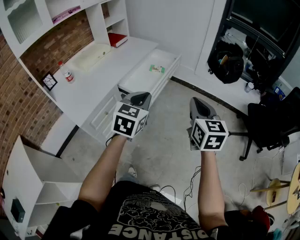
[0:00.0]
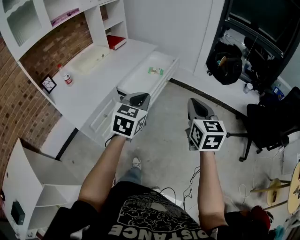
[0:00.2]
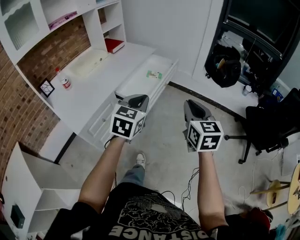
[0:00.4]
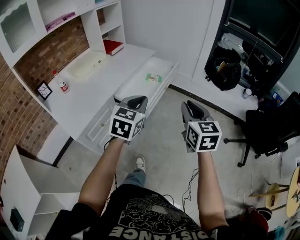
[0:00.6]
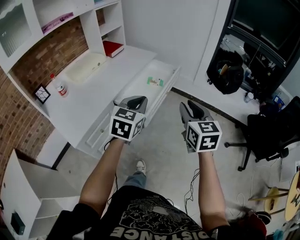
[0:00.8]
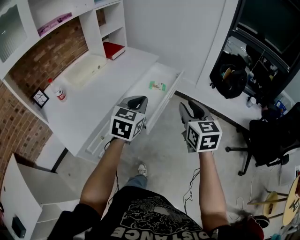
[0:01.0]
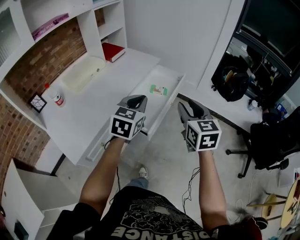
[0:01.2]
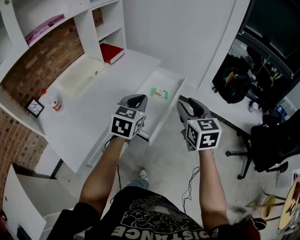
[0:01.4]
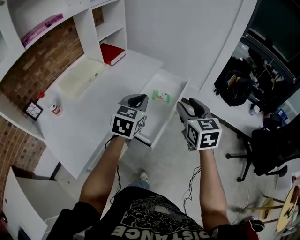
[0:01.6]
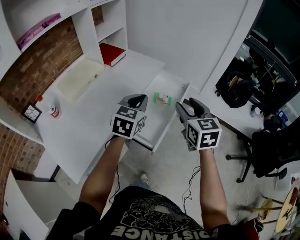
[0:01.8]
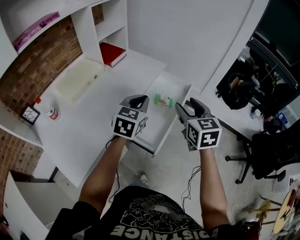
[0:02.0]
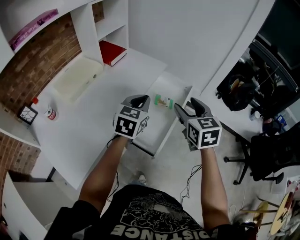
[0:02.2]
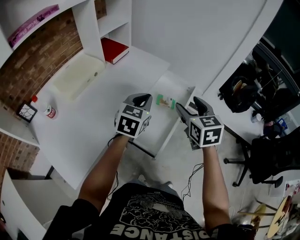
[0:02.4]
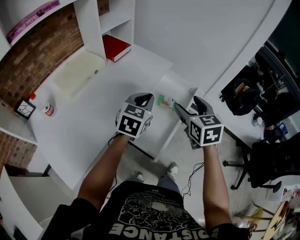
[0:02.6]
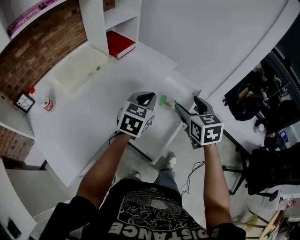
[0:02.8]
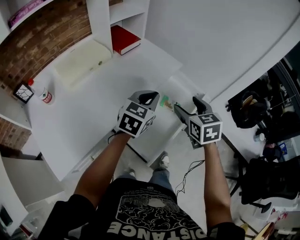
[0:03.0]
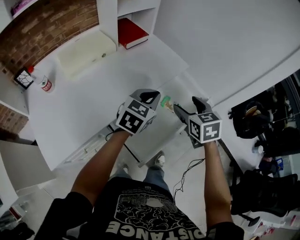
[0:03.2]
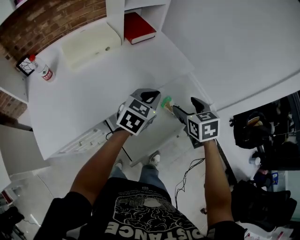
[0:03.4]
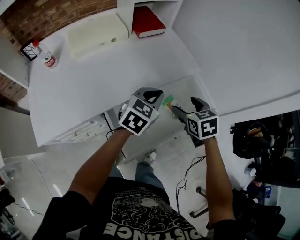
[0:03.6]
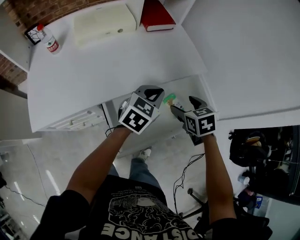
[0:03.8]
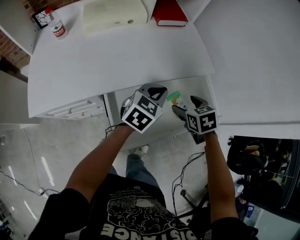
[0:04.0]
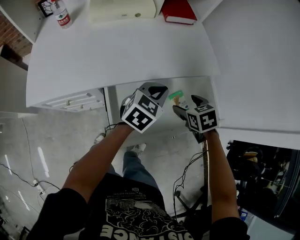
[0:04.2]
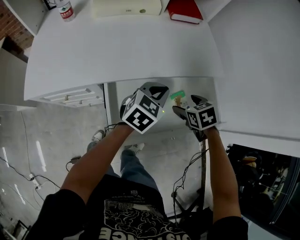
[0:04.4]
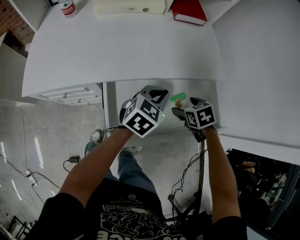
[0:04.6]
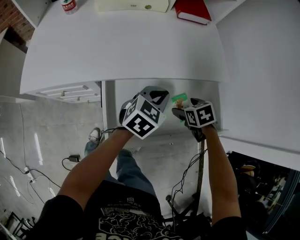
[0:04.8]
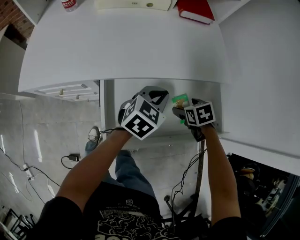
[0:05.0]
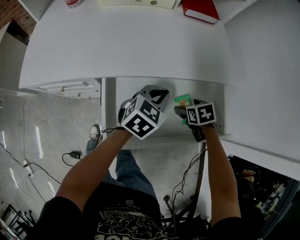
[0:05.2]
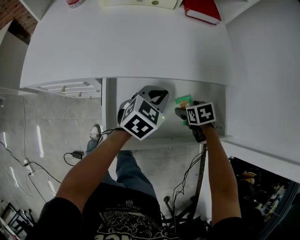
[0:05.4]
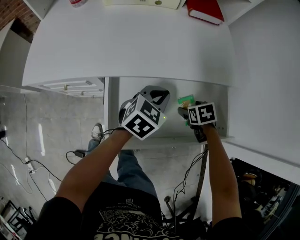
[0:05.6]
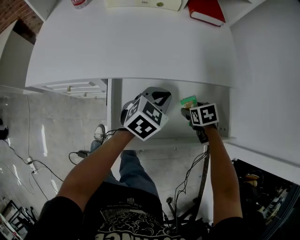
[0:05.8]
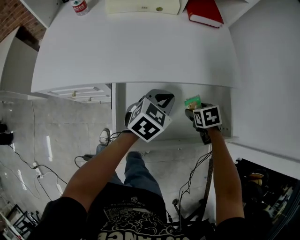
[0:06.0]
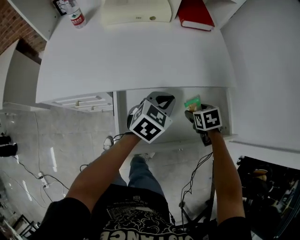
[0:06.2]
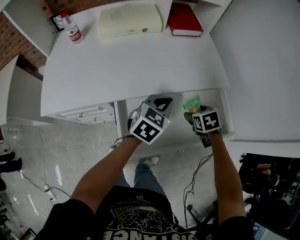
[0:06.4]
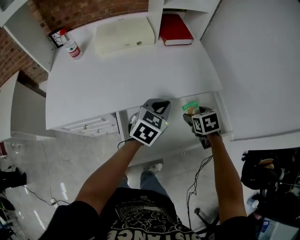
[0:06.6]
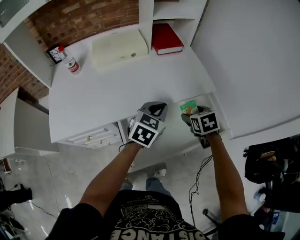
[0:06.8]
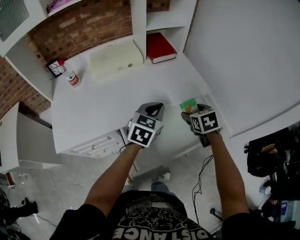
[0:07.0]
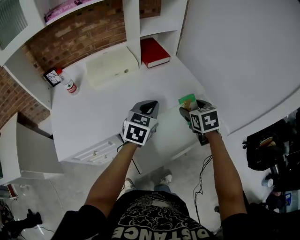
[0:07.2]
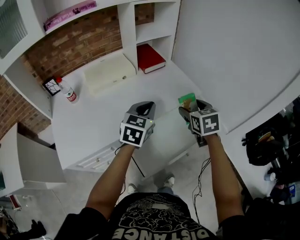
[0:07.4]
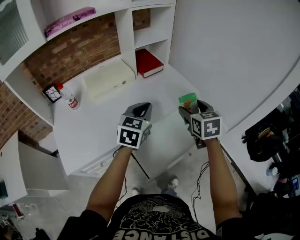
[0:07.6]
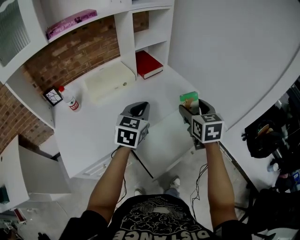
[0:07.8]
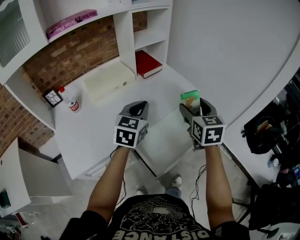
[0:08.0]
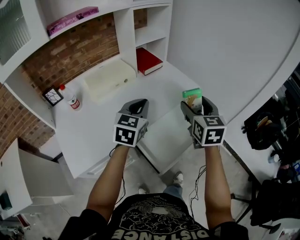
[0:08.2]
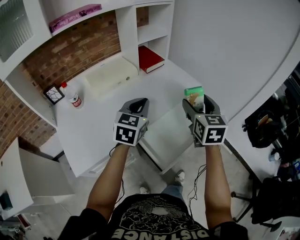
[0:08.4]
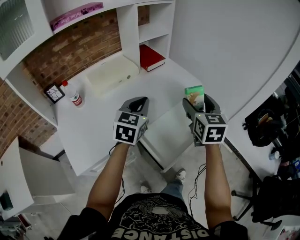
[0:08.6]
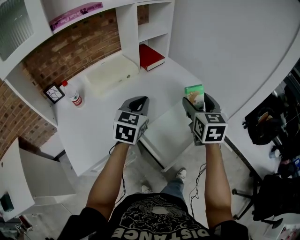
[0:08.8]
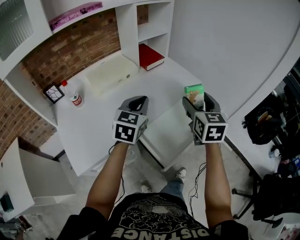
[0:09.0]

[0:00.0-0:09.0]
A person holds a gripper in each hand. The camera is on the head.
0:00.0 to 0:01.6: The right gripper travels forward and to the left by some 35 cm, and opens. Meanwhile the left gripper shifts some 30 cm forward.
0:01.6 to 0:03.0: The two grippers go about 15 cm forward and downward. The right gripper changes its angle by approximately 20 degrees.
0:03.0 to 0:04.4: The left gripper is displaced downward by some 15 cm, and swivels some 30 degrees; the right gripper travels downward by approximately 20 cm, and tips its fingers downward by some 30 degrees.
0:04.4 to 0:06.0: The right gripper heads downward, covering roughly 10 cm.
0:06.0 to 0:07.6: Both grippers move upward, about 30 cm. The right gripper points its fingers roughly 40 degrees further upward.
0:07.6 to 0:09.0: The right gripper moves backward and upward, approximately 10 cm. Meanwhile the left gripper travels to the left by about 5 cm.

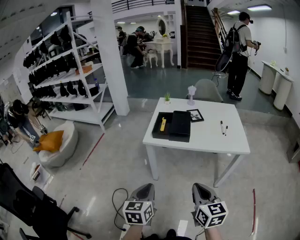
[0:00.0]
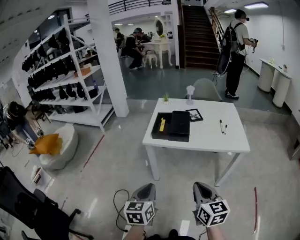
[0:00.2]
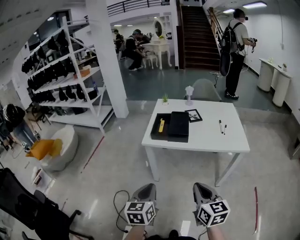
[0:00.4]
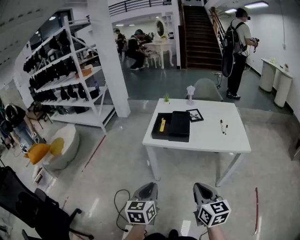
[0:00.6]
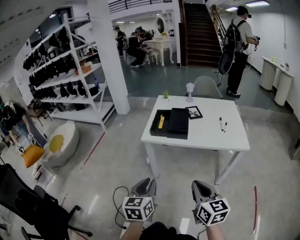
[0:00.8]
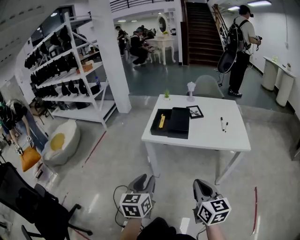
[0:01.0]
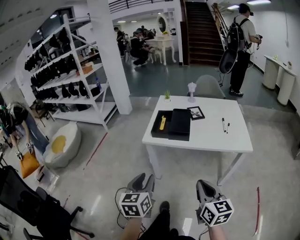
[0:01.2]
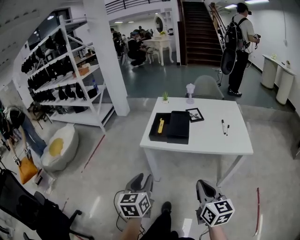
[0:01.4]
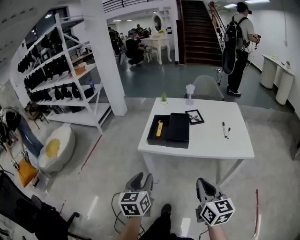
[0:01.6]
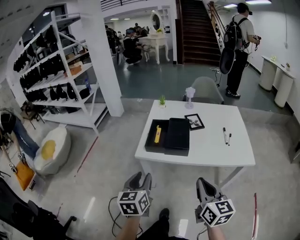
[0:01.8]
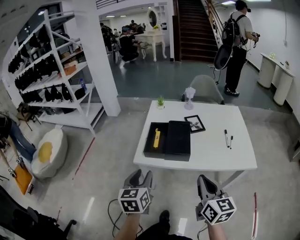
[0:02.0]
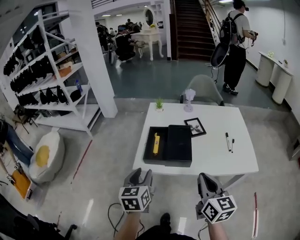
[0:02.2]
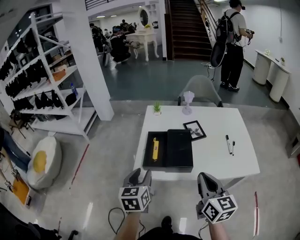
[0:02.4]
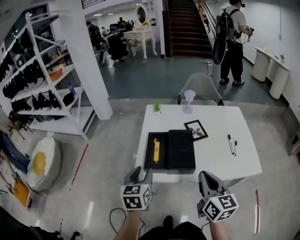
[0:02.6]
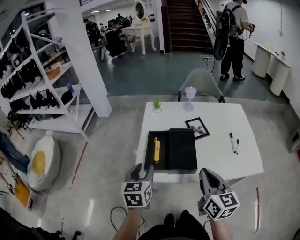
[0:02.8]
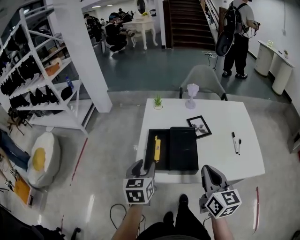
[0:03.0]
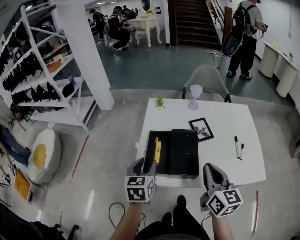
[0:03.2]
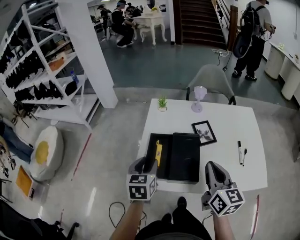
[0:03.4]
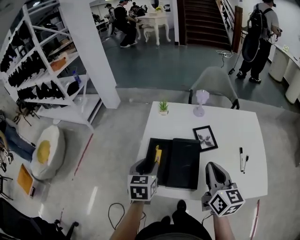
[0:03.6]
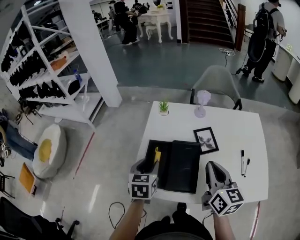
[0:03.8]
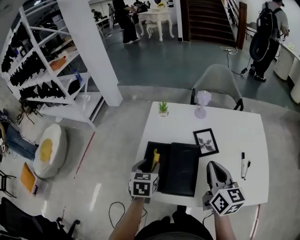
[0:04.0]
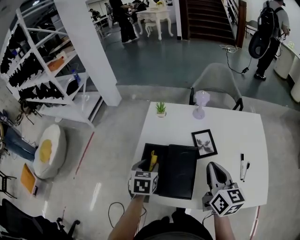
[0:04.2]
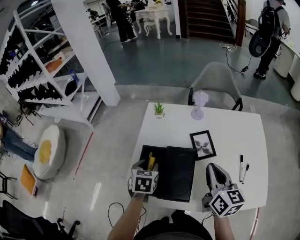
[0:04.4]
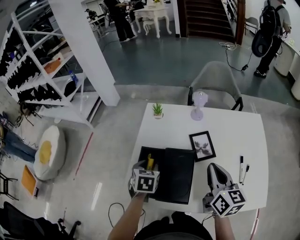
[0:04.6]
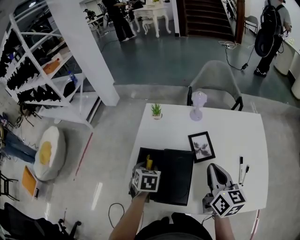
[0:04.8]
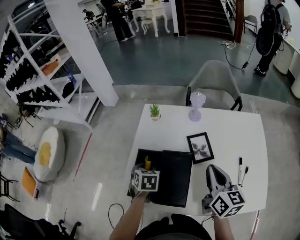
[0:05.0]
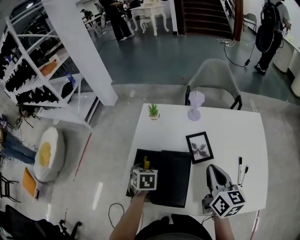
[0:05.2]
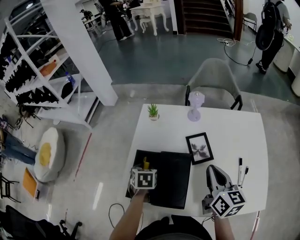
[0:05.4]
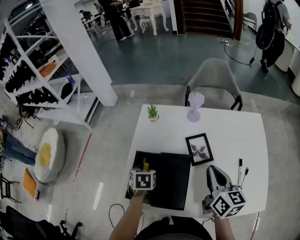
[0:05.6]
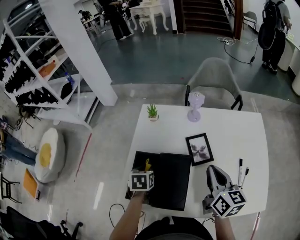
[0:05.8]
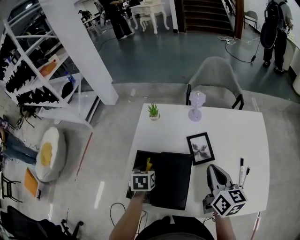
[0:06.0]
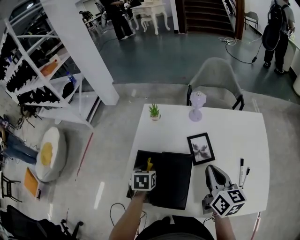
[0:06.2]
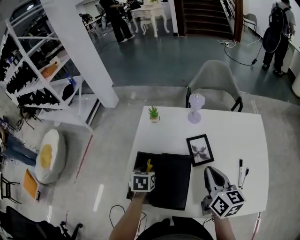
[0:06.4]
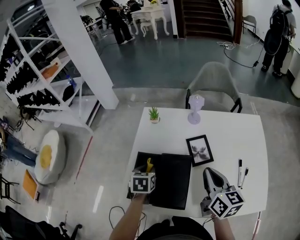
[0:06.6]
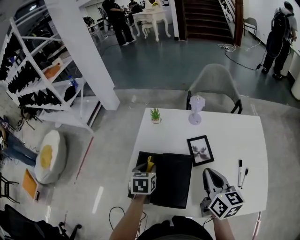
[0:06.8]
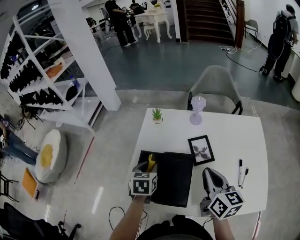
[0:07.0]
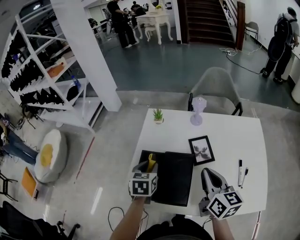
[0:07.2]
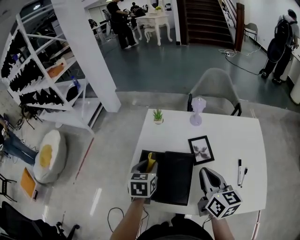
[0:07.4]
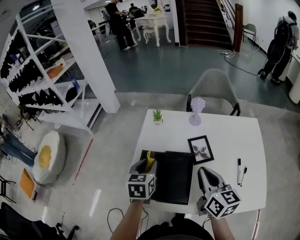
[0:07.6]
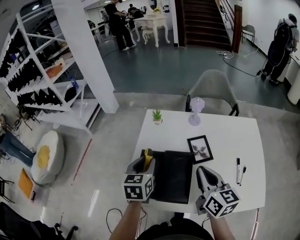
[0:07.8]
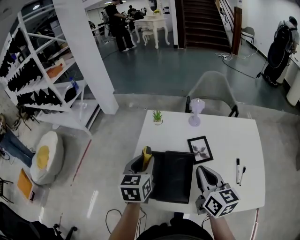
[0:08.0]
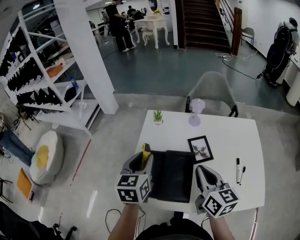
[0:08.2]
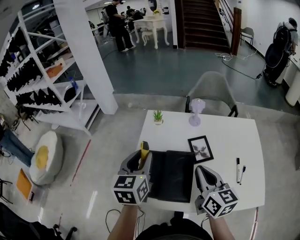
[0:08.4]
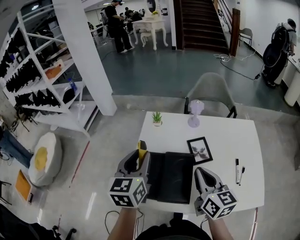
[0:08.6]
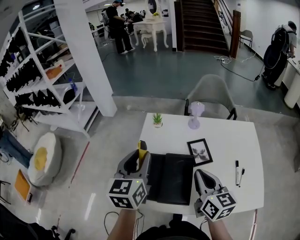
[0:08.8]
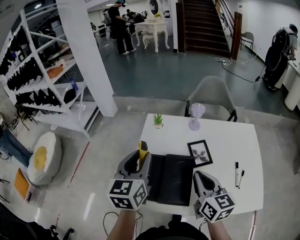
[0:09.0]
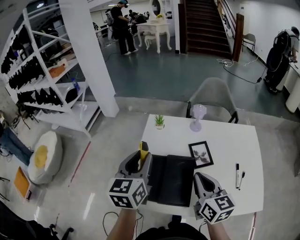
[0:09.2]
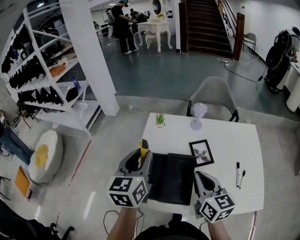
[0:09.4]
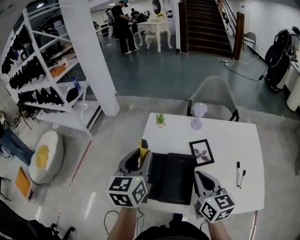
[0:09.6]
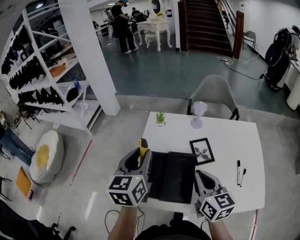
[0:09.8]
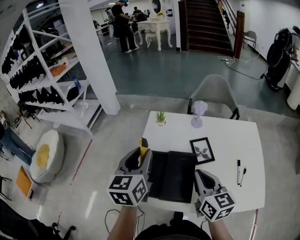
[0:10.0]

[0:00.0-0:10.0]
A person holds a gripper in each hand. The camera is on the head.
0:00.0 to 0:01.4: The left gripper shifts roughly 5 cm forward, and opens up. The right gripper moves approximately 5 cm.
0:01.4 to 0:02.8: Both grippers move forward, about 30 cm.
0:02.8 to 0:04.2: The right gripper goes some 20 cm forward and to the right; the left gripper is displaced forward and downward by approximately 20 cm.
0:04.2 to 0:05.8: The right gripper changes place by roughly 5 cm, while the left gripper is displaced downward by approximately 5 cm.
0:05.8 to 0:07.2: The left gripper is displaced upward by approximately 10 cm. The right gripper ends up roughly 5 cm from where it was.
0:07.2 to 0:08.6: The left gripper shifts about 15 cm upward, and changes its angle by some 30 degrees.
0:08.6 to 0:10.0: The grippers move only a little.

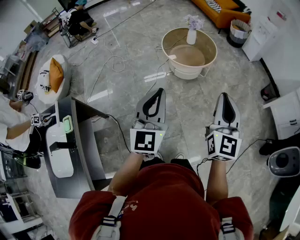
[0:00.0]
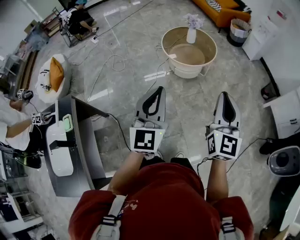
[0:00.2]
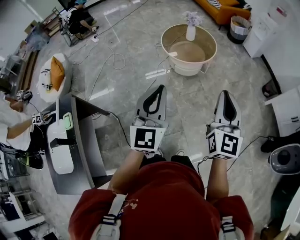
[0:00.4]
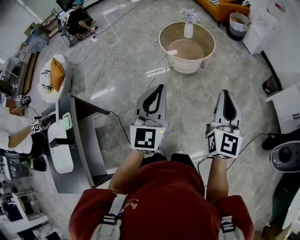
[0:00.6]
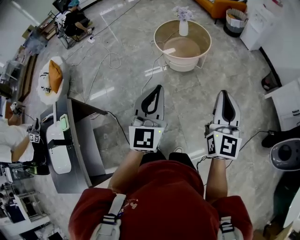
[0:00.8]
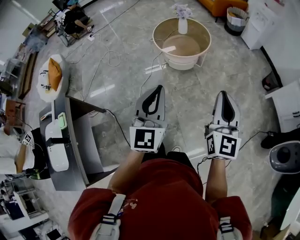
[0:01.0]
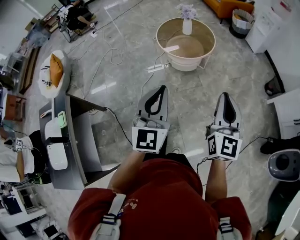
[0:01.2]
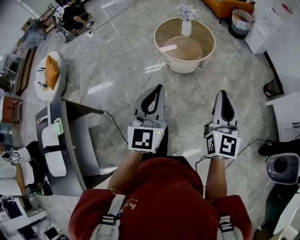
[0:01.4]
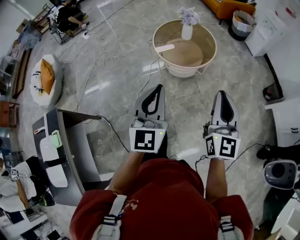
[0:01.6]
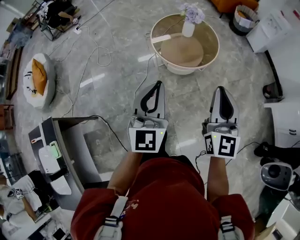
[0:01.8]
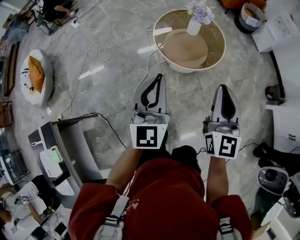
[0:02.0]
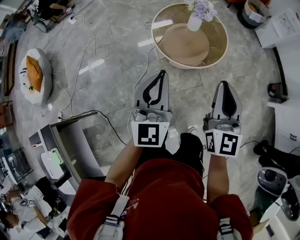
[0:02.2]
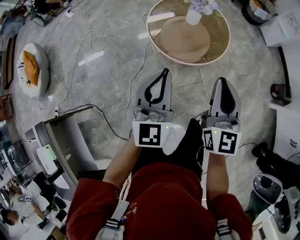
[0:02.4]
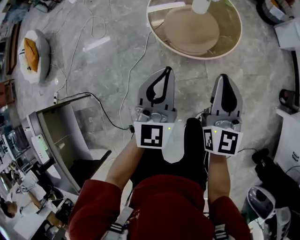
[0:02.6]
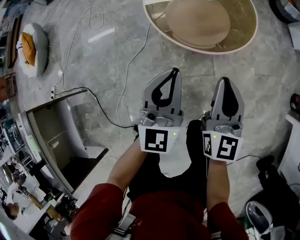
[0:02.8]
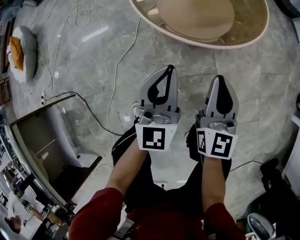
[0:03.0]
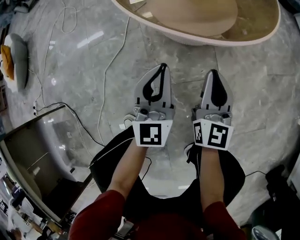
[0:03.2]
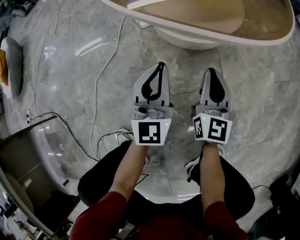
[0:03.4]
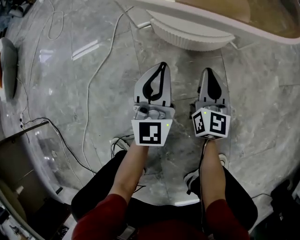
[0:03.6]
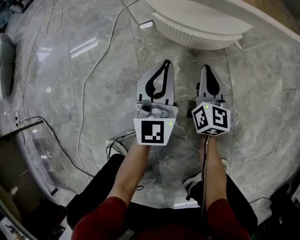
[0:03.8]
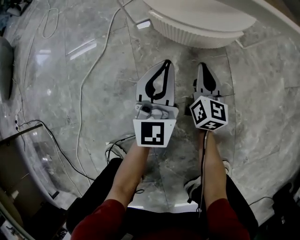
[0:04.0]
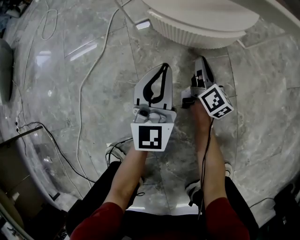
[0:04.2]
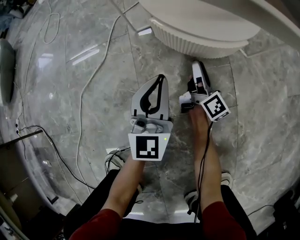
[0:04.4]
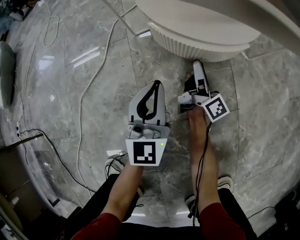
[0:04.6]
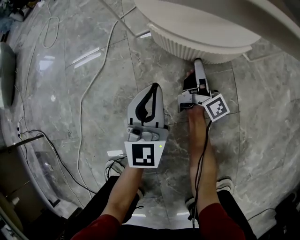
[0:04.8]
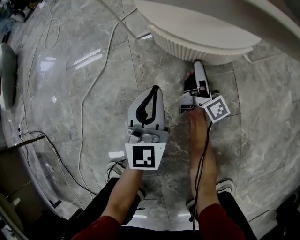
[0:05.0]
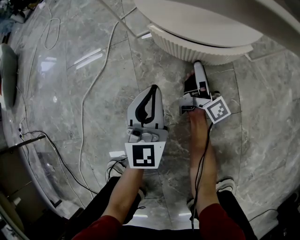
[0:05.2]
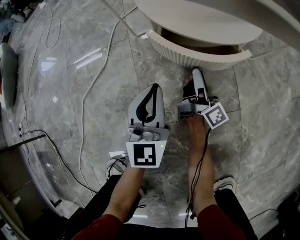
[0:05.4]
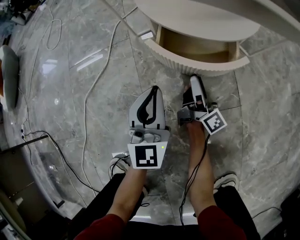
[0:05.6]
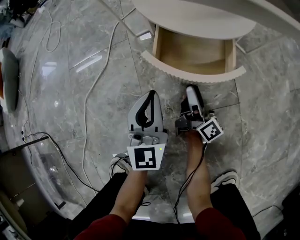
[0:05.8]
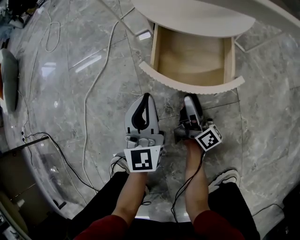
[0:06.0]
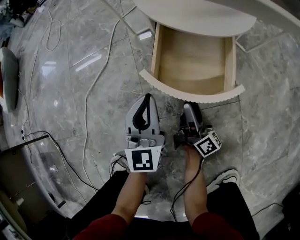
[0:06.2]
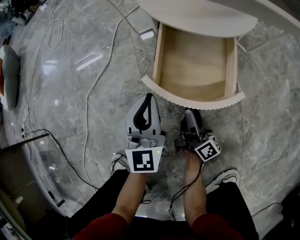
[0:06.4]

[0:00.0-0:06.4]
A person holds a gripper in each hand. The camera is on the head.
0:00.0 to 0:01.6: The grippers both shift forward by some 15 cm.
0:01.6 to 0:03.2: The grippers both shift downward and forward by about 70 cm.
0:03.2 to 0:04.8: The right gripper travels downward and forward by about 35 cm, twists some 60 degrees clockwise, seen from behind, and opens up, while the left gripper is displaced downward by roughly 25 cm.
0:04.8 to 0:06.4: The right gripper moves backward, roughly 20 cm; the left gripper heads backward, covering approximately 5 cm.
